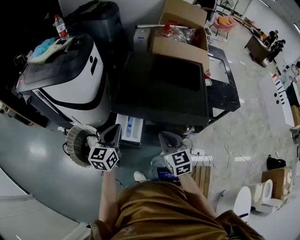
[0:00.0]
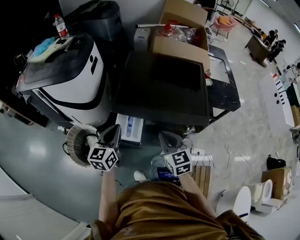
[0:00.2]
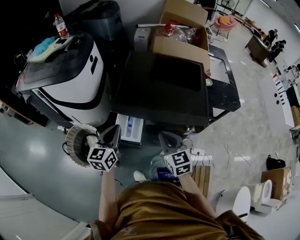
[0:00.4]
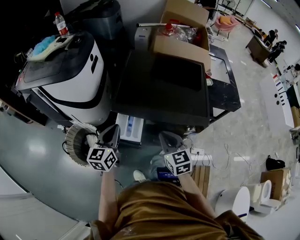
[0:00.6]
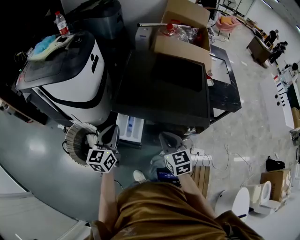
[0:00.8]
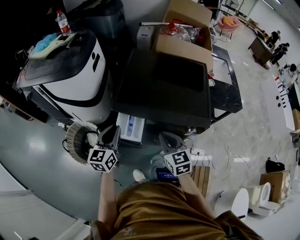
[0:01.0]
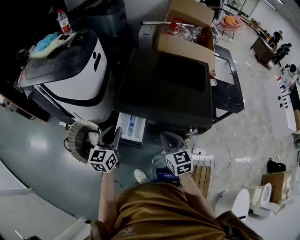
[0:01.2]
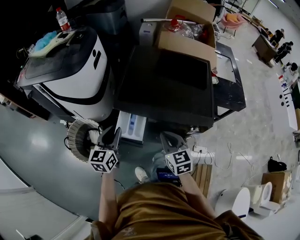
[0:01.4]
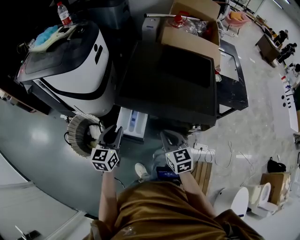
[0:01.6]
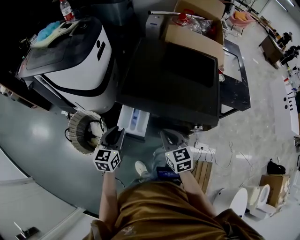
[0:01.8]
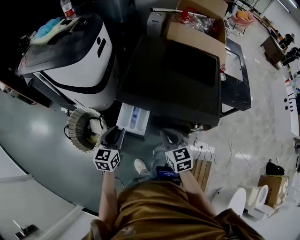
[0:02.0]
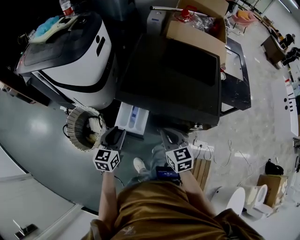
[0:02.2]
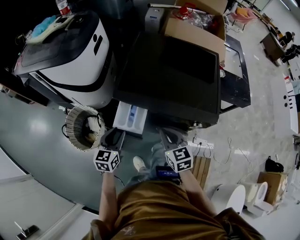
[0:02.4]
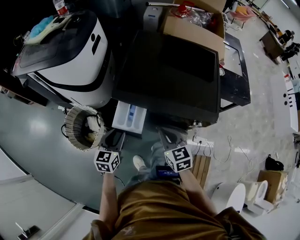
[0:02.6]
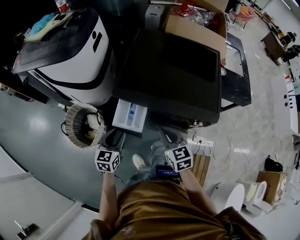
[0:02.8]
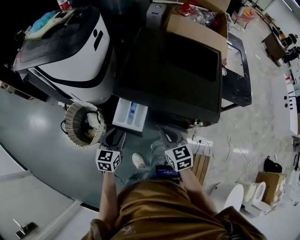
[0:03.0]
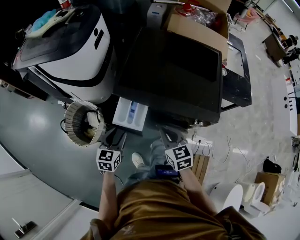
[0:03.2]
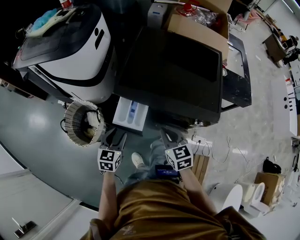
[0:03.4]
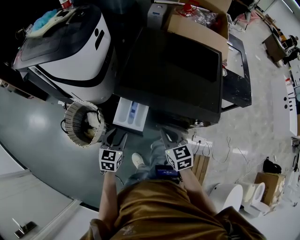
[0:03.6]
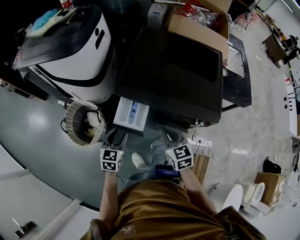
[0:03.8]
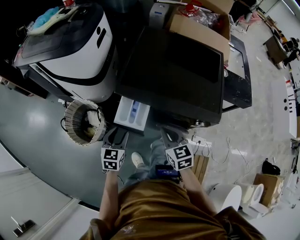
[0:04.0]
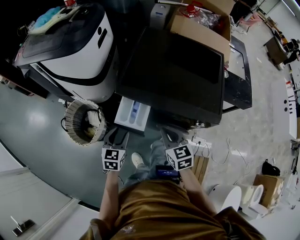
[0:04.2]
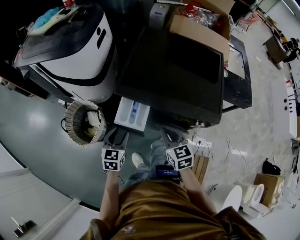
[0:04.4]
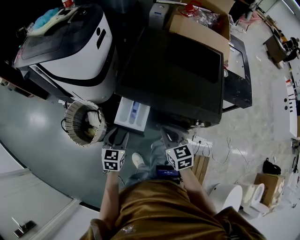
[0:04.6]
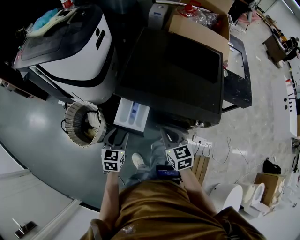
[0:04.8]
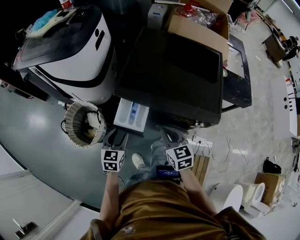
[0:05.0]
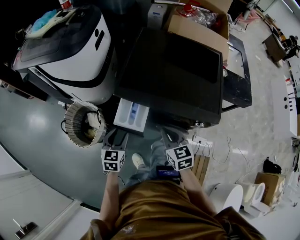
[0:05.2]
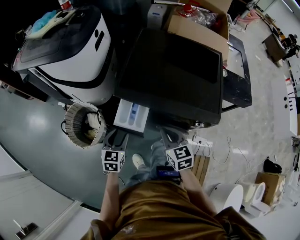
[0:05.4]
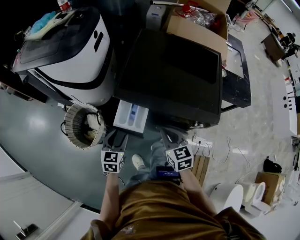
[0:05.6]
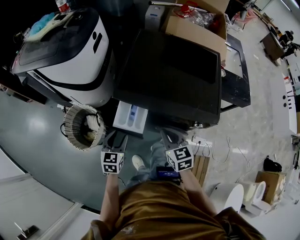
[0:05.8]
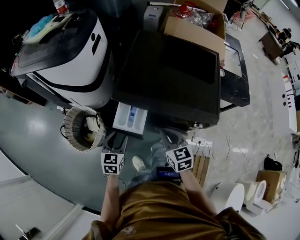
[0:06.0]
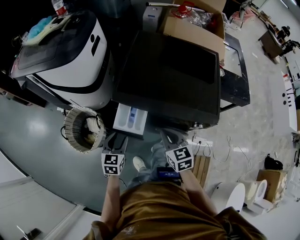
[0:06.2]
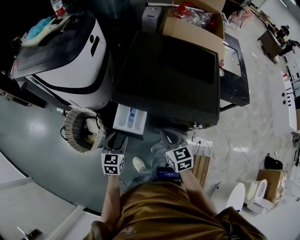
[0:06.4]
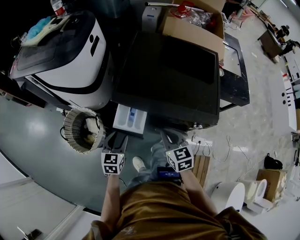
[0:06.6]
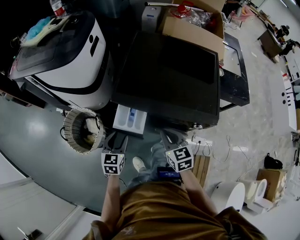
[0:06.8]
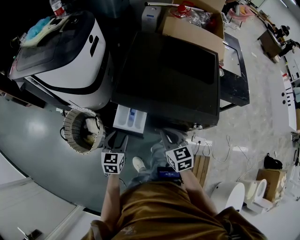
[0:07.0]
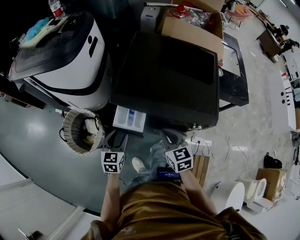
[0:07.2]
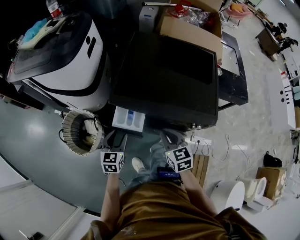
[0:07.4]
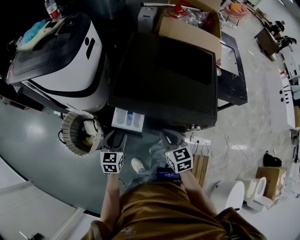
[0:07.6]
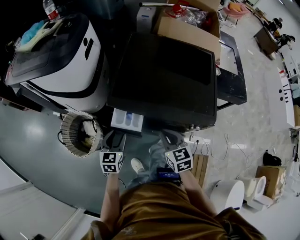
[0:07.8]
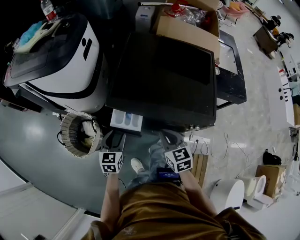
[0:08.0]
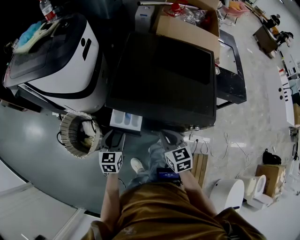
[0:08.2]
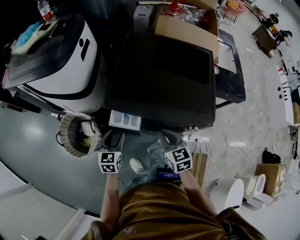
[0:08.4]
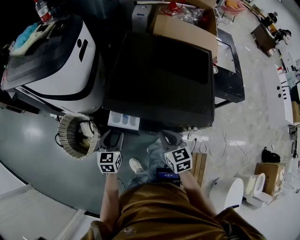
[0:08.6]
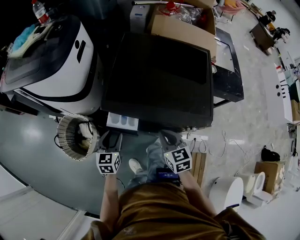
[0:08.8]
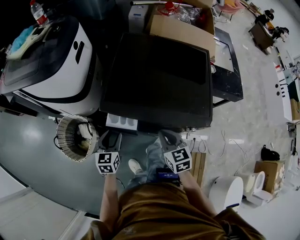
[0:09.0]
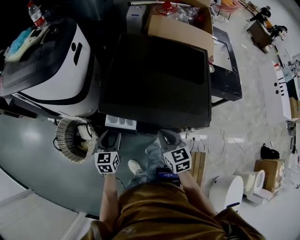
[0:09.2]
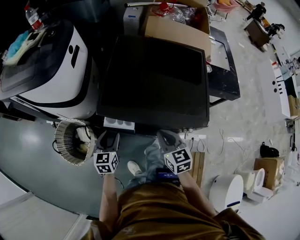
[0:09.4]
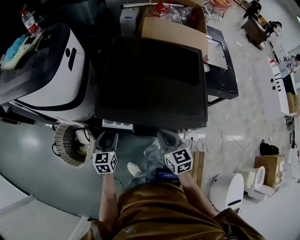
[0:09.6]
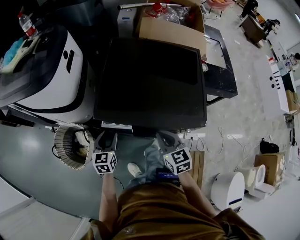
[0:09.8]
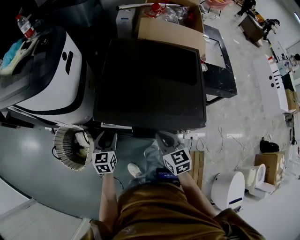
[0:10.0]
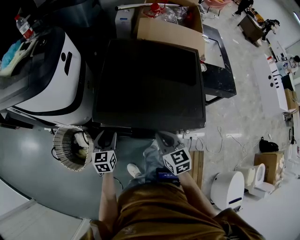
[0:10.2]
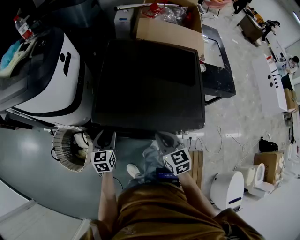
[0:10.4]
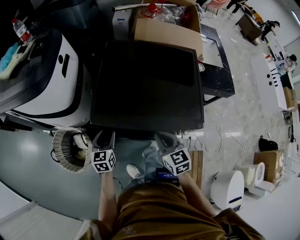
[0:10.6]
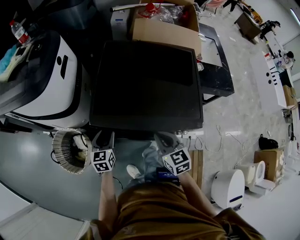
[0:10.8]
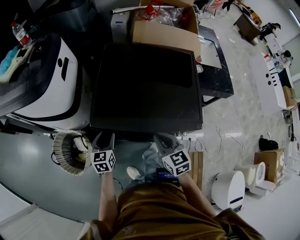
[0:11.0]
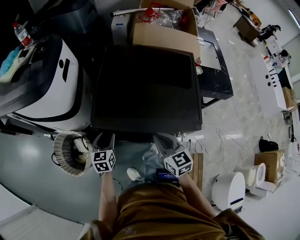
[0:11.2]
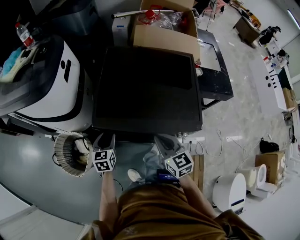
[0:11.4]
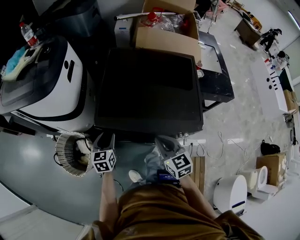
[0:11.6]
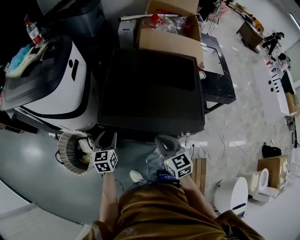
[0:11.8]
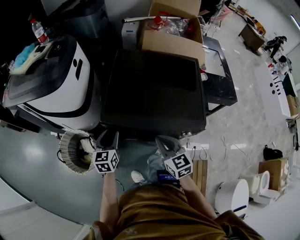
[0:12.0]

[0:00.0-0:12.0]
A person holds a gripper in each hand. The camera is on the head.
0:00.0 to 0:01.6: The left gripper is displaced downward by some 5 cm.
0:01.6 to 0:03.0: The left gripper shifts approximately 10 cm downward.
0:03.0 to 0:04.4: The grippers move only a little.
0:04.4 to 0:06.0: Both grippers stay about where they are.
0:06.0 to 0:07.6: The grippers make only small movements.
0:07.6 to 0:09.0: The grippers make only small movements.
0:09.0 to 0:10.4: The left gripper goes some 5 cm forward.
0:10.4 to 0:12.0: The left gripper goes about 5 cm upward, while the right gripper shifts by approximately 5 cm.

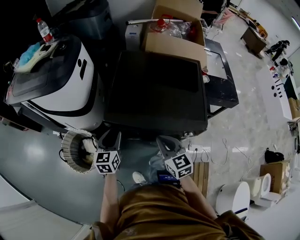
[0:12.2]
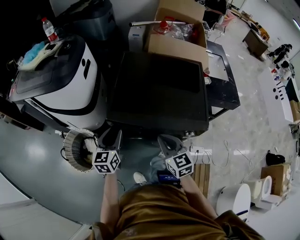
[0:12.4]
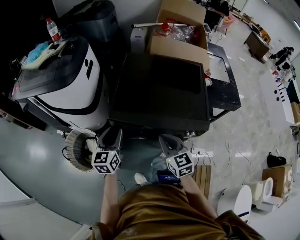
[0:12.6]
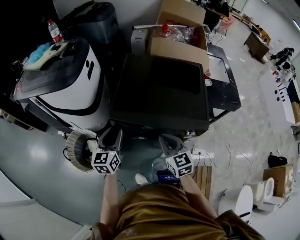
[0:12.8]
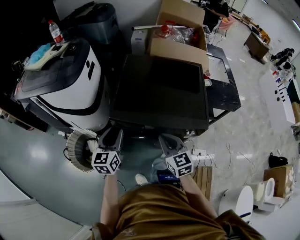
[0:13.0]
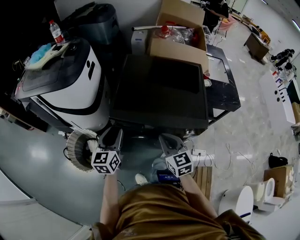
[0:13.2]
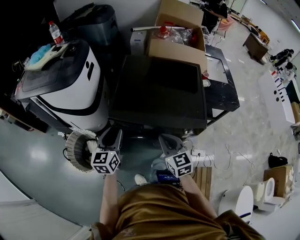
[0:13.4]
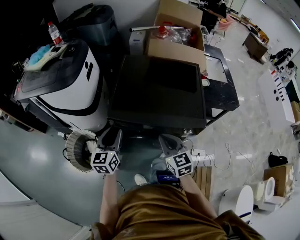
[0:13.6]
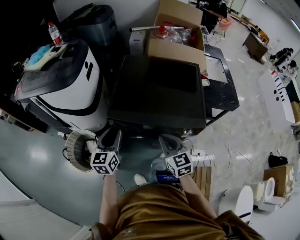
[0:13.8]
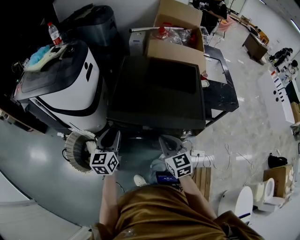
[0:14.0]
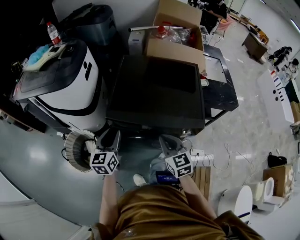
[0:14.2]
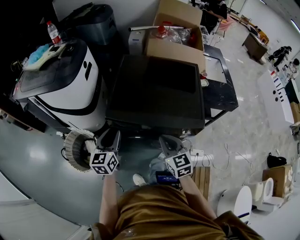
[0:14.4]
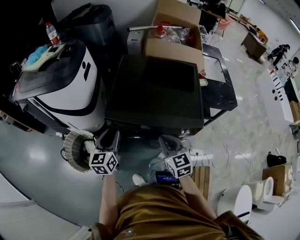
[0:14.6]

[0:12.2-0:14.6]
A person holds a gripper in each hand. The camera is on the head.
0:12.2 to 0:13.4: The left gripper goes about 5 cm upward.
0:13.4 to 0:14.6: The grippers stay close to where they were, moving slightly.

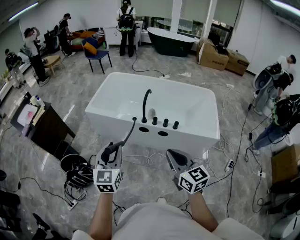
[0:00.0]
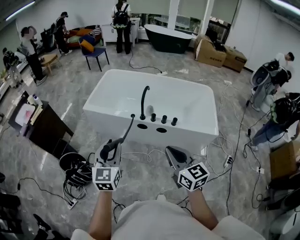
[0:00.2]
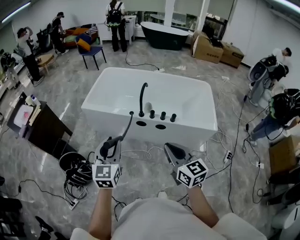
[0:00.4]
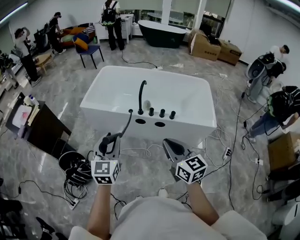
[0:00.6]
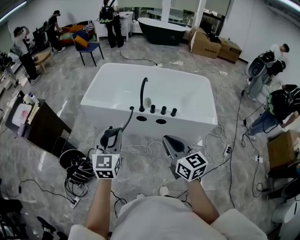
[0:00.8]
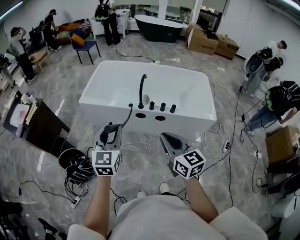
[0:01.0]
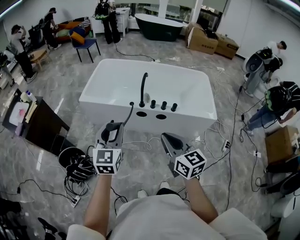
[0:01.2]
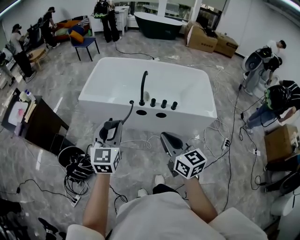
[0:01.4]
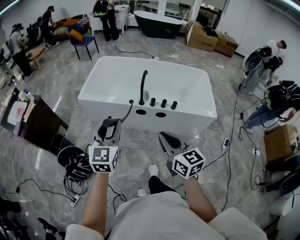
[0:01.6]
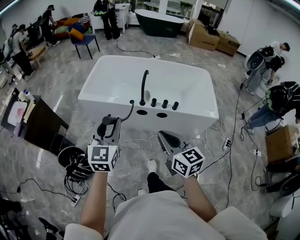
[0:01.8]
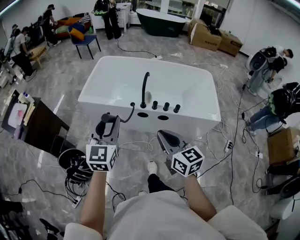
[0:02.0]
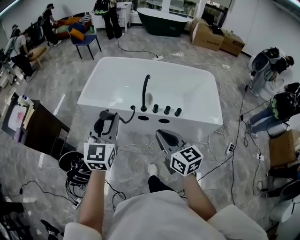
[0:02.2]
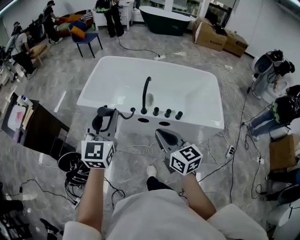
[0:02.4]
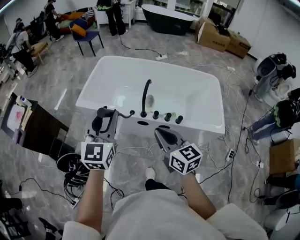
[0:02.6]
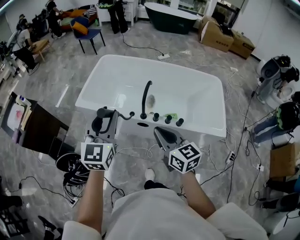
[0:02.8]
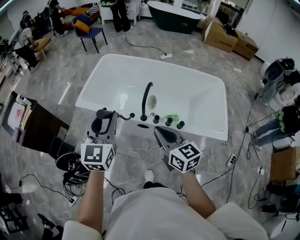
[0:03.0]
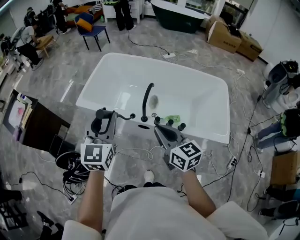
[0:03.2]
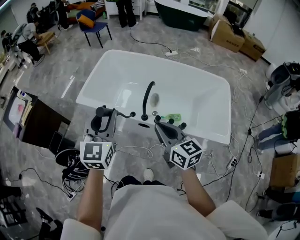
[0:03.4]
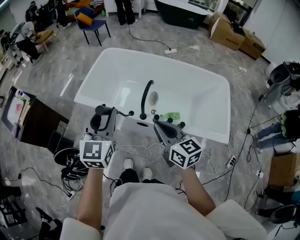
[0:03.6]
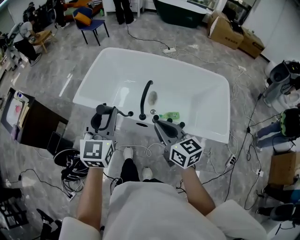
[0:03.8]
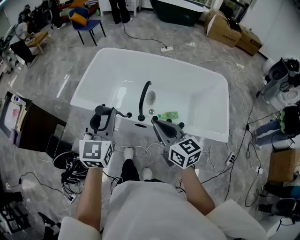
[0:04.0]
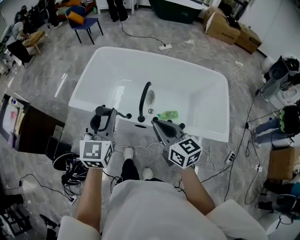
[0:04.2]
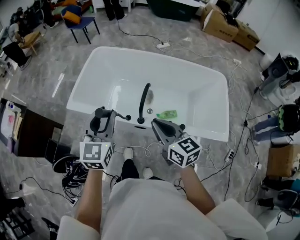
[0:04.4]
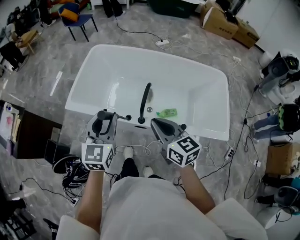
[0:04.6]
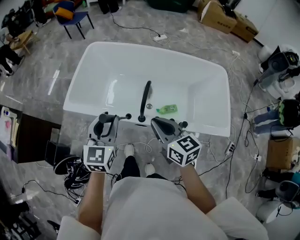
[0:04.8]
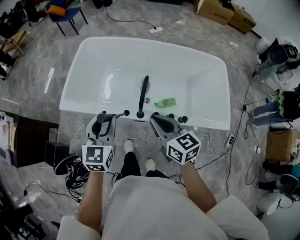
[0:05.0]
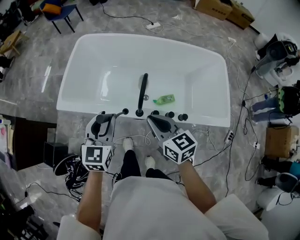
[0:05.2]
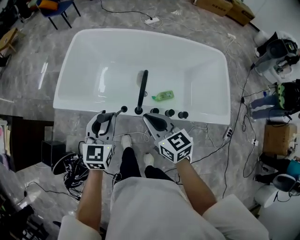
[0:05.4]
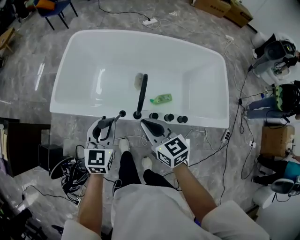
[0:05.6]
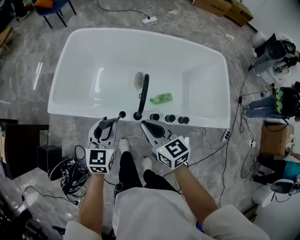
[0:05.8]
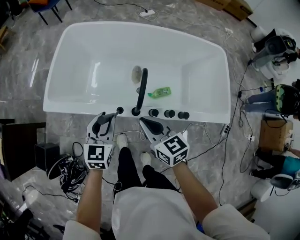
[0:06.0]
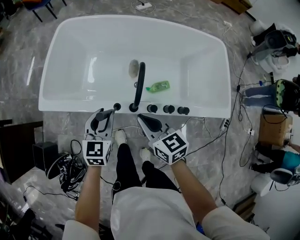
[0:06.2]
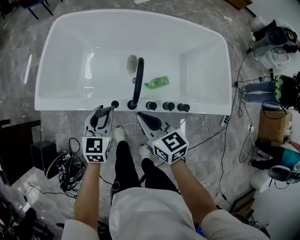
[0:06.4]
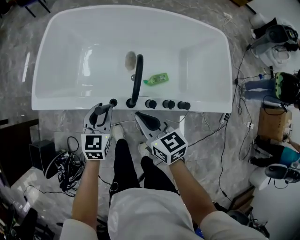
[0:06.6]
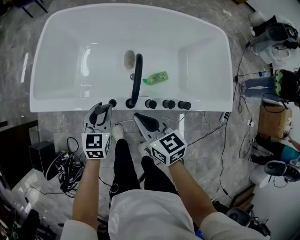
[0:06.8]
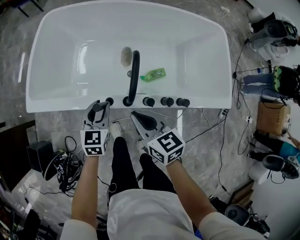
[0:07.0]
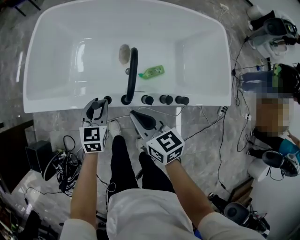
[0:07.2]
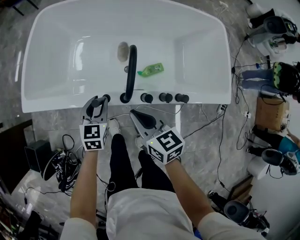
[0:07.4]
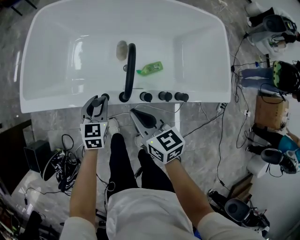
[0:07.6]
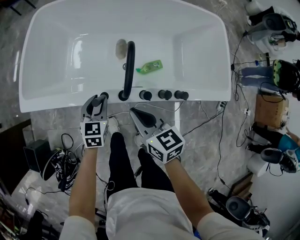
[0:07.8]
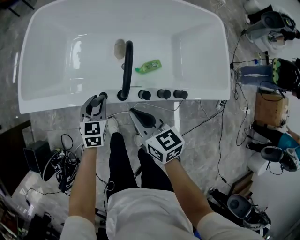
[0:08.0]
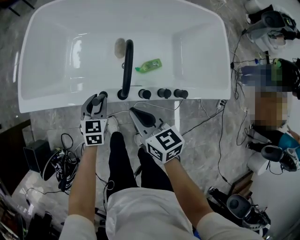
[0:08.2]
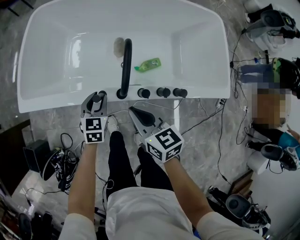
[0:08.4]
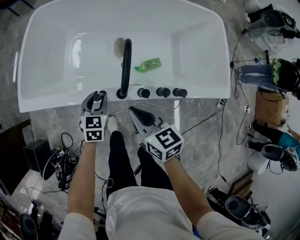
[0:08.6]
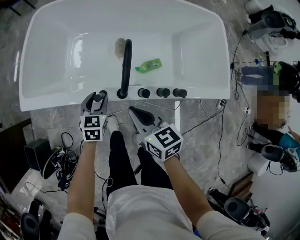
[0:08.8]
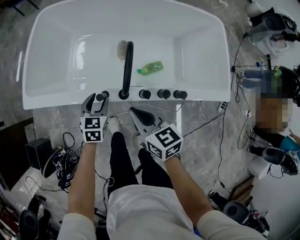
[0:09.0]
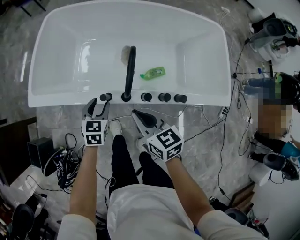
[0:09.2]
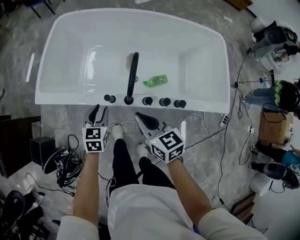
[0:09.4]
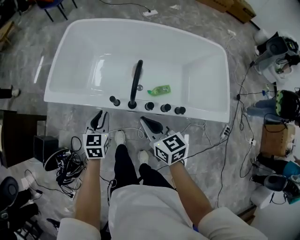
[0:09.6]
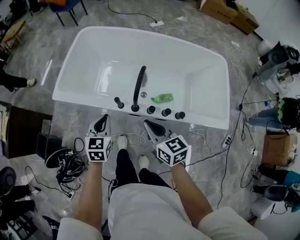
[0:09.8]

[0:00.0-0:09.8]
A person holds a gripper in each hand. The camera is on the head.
0:00.0 to 0:01.4: The right gripper is displaced to the left by roughly 10 cm. The left gripper moves approximately 5 cm.
0:01.4 to 0:02.8: The grippers both shift forward by about 20 cm.
0:02.8 to 0:04.2: The left gripper heads forward and downward, covering about 10 cm. The right gripper shifts some 10 cm forward.
0:04.2 to 0:05.6: Both grippers travel together downward and forward, approximately 15 cm.
0:05.6 to 0:07.0: The left gripper travels downward by some 15 cm, while the right gripper travels downward by about 10 cm.
0:07.0 to 0:08.4: The left gripper is displaced downward by about 5 cm.
0:08.4 to 0:09.8: The right gripper is displaced upward and backward by roughly 10 cm, while the left gripper moves upward and backward, roughly 20 cm, and closes.
